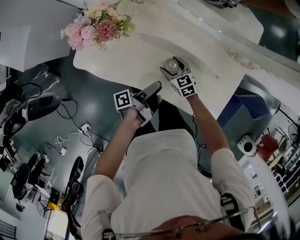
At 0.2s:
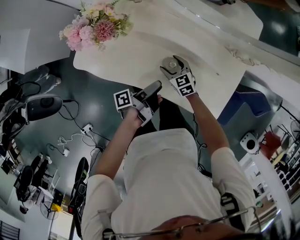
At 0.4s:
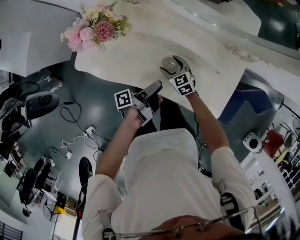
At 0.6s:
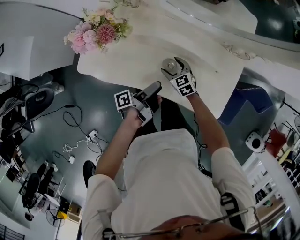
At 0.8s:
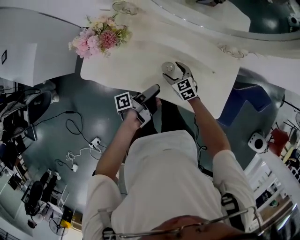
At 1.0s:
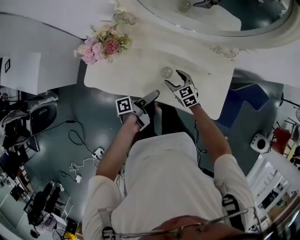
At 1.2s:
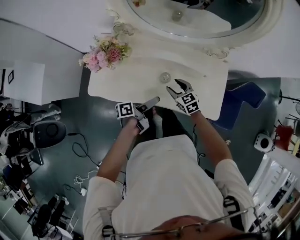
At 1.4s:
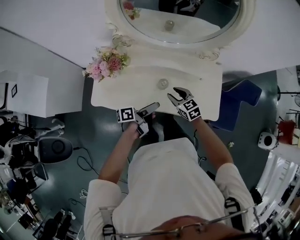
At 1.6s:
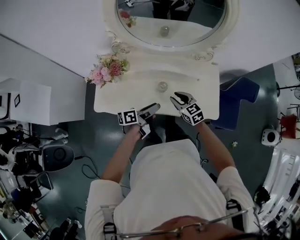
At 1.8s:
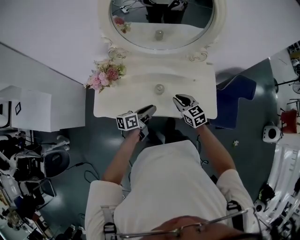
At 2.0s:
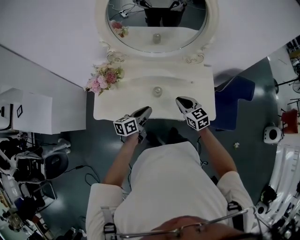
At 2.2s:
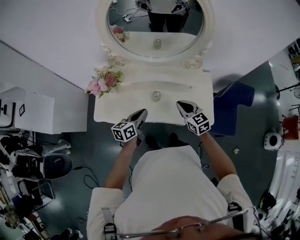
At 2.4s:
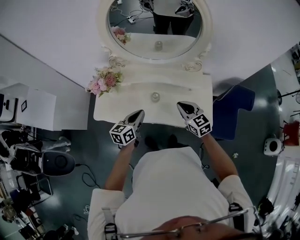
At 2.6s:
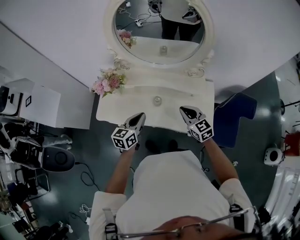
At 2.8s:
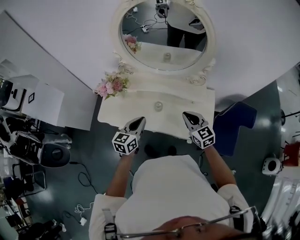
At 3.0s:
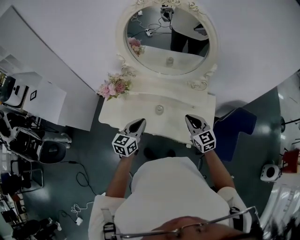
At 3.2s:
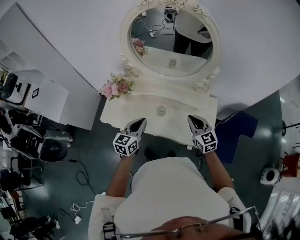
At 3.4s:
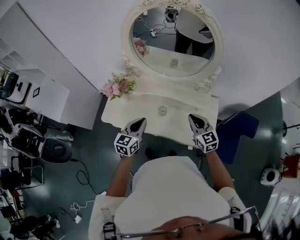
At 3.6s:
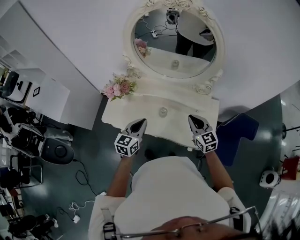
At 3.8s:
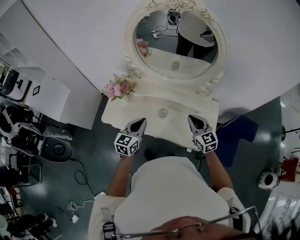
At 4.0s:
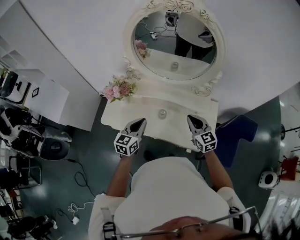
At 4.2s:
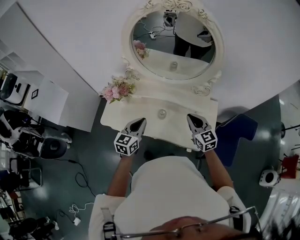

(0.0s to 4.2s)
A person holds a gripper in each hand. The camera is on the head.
0.0s - 1.4s: The right gripper is displaced upward by some 15 cm, and closes up.
1.4s - 2.8s: The right gripper shifts about 15 cm upward, and closes up.

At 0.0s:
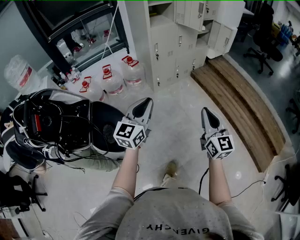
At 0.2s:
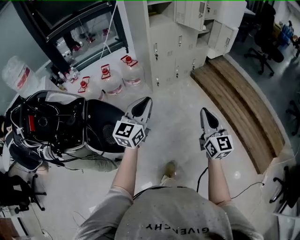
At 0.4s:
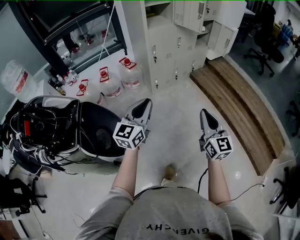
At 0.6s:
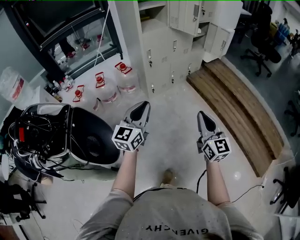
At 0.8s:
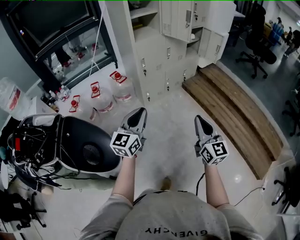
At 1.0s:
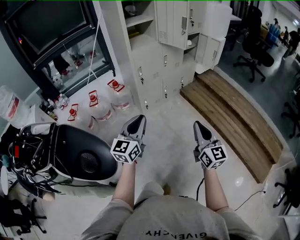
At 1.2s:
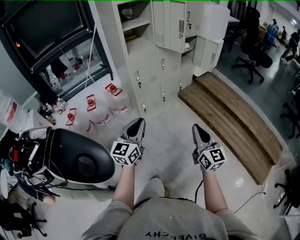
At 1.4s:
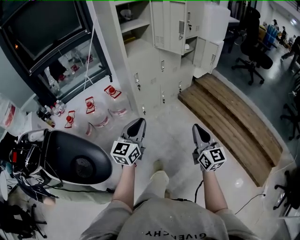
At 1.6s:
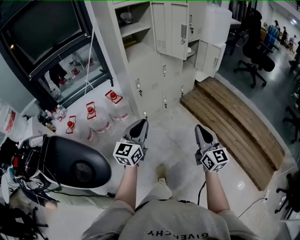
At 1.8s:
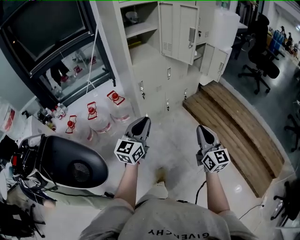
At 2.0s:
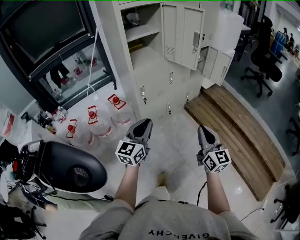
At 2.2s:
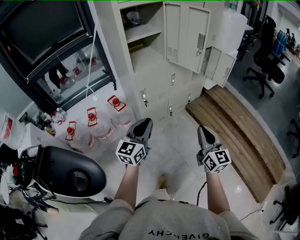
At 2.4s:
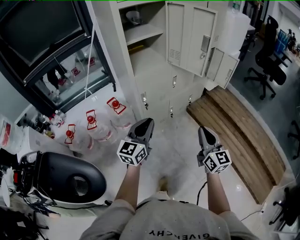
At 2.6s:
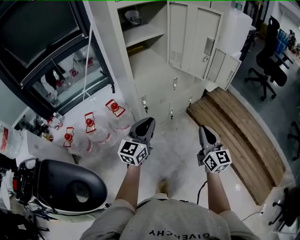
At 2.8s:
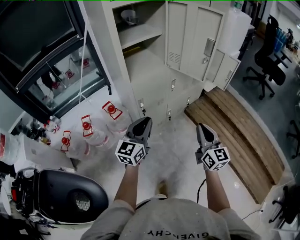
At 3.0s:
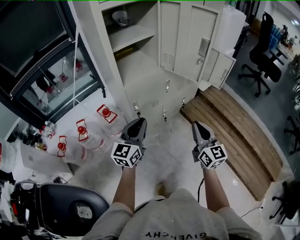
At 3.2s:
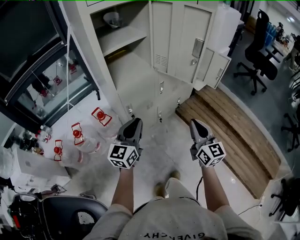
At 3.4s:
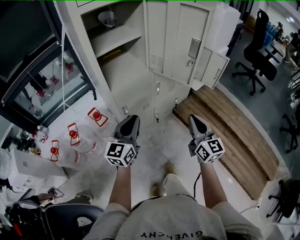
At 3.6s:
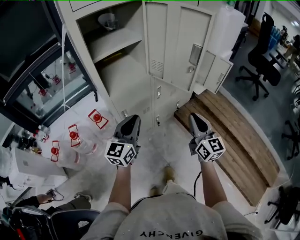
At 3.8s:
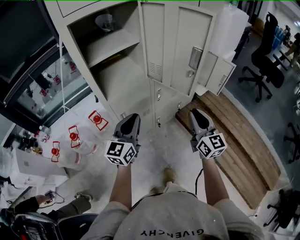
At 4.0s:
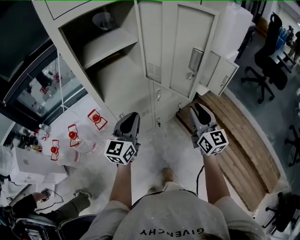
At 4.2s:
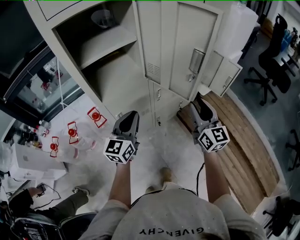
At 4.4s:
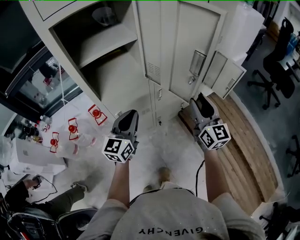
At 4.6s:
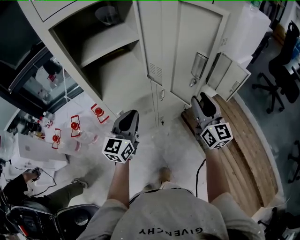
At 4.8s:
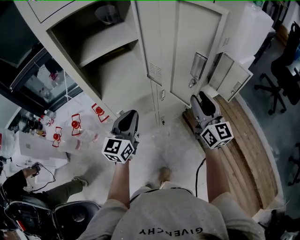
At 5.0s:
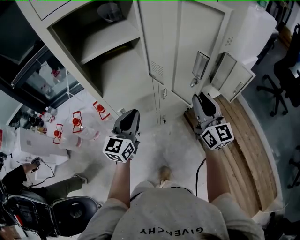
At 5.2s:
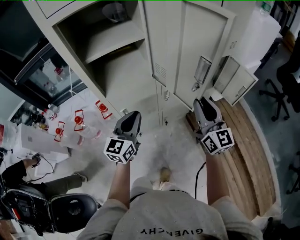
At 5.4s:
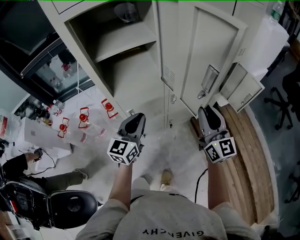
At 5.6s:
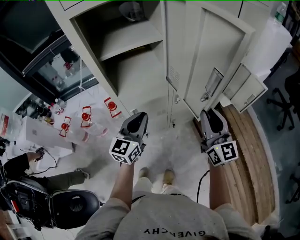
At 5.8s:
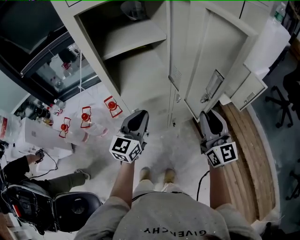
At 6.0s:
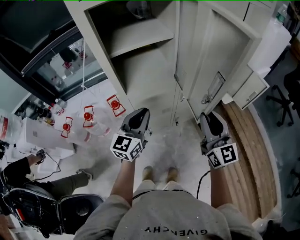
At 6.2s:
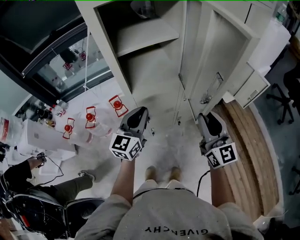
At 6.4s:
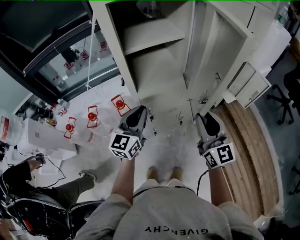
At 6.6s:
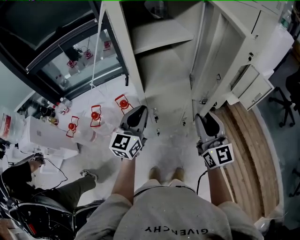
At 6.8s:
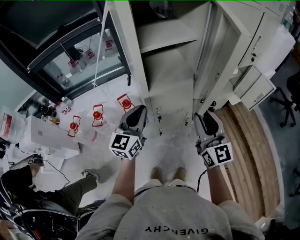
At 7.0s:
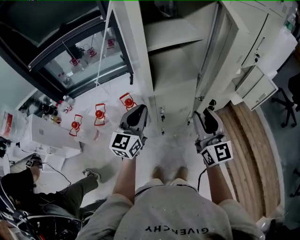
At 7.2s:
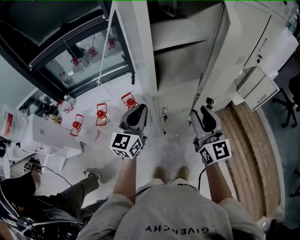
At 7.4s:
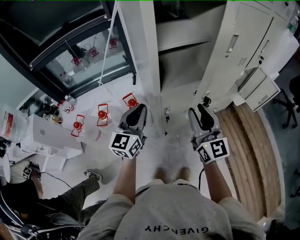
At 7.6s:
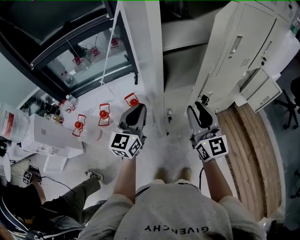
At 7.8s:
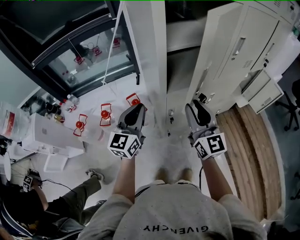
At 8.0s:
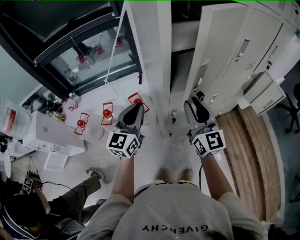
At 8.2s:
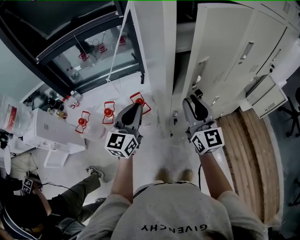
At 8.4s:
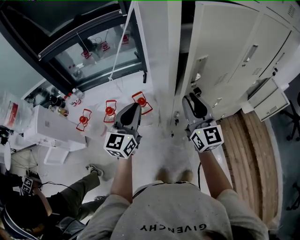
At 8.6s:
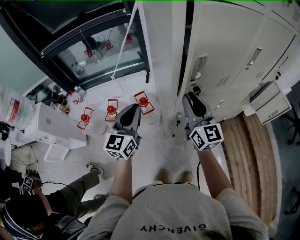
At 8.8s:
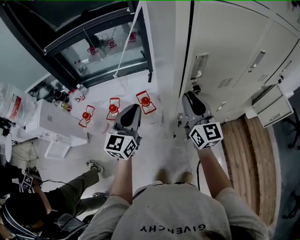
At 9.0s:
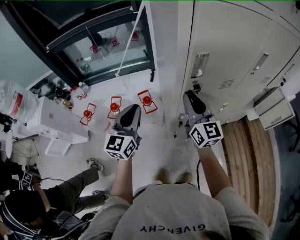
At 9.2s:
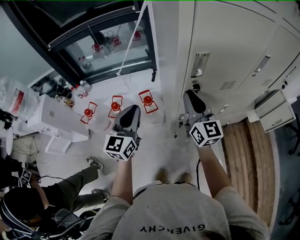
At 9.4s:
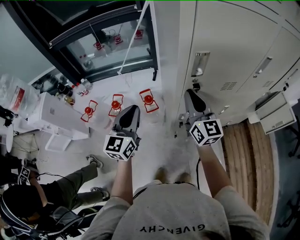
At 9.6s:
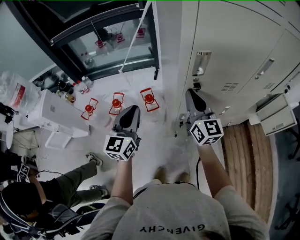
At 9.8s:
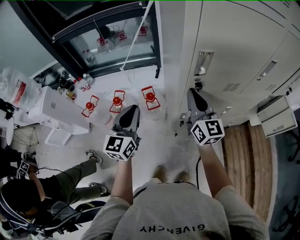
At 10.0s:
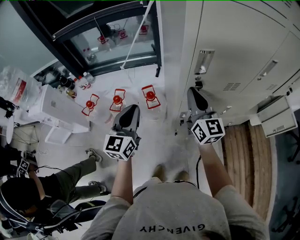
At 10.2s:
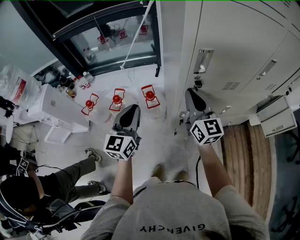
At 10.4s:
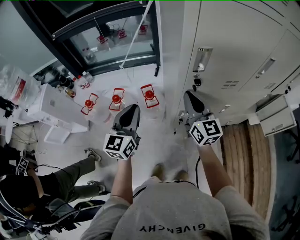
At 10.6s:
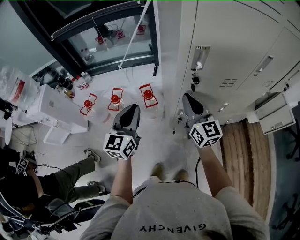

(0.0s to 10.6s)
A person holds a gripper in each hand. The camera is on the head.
0.0s - 1.6s: Both grippers travel together forward, about 25 cm.
1.6s - 3.0s: The two grippers go some 30 cm forward.
3.0s - 4.6s: The left gripper shifts approximately 20 cm forward and to the right; the right gripper is displaced forward by roughly 25 cm, and opens its fingers.
4.6s - 6.0s: The two grippers go roughly 10 cm to the left.
6.0s - 7.6s: Both grippers move to the left, some 20 cm.
7.6s - 9.0s: The right gripper moves forward and to the left, about 10 cm; the left gripper shifts approximately 10 cm to the left.
9.0s - 10.6s: The grippers move only a little.

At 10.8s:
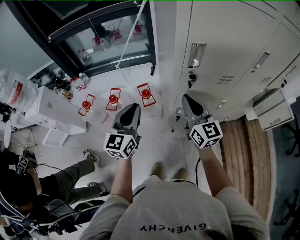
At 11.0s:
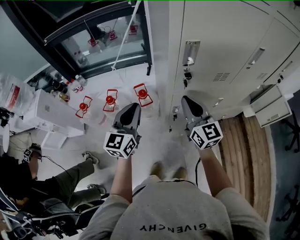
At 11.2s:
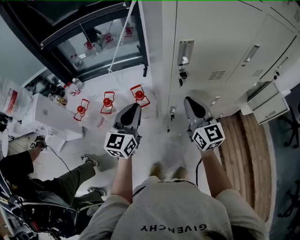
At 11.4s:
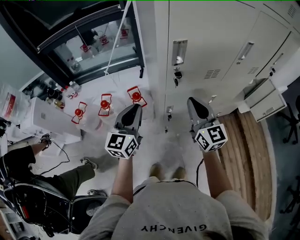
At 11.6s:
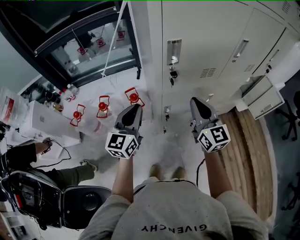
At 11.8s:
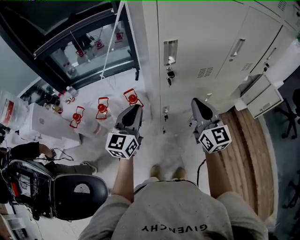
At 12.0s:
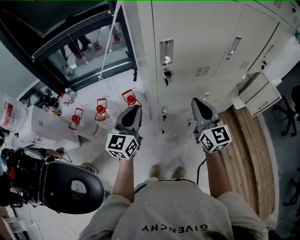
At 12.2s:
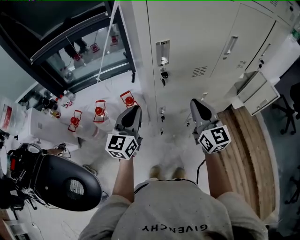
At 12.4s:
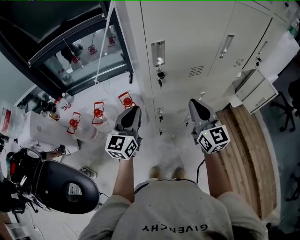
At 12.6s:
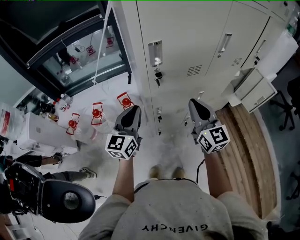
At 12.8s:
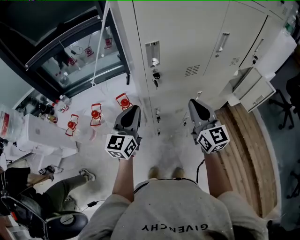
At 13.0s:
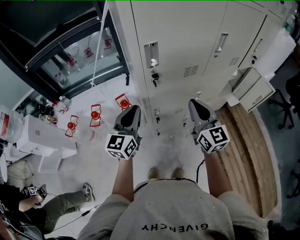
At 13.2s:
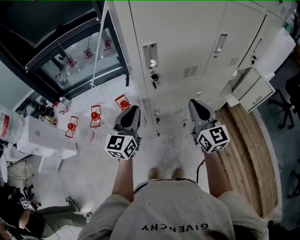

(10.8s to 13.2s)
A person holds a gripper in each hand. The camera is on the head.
10.8s - 12.0s: The right gripper travels to the right and backward by about 10 cm. The left gripper shifts roughly 10 cm to the right.
12.0s - 13.2s: The grippers stay close to where they were, moving slightly.

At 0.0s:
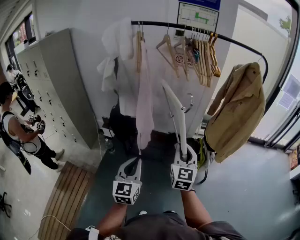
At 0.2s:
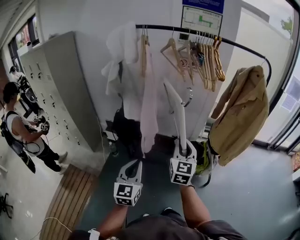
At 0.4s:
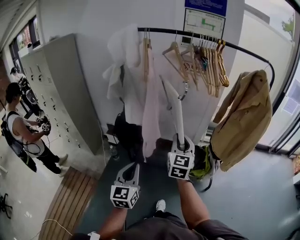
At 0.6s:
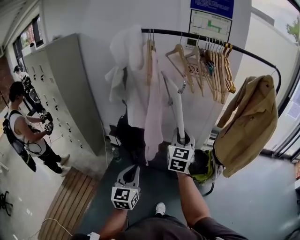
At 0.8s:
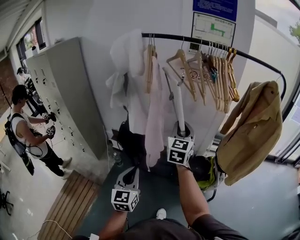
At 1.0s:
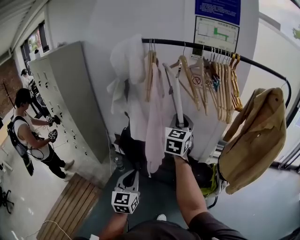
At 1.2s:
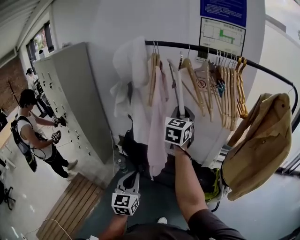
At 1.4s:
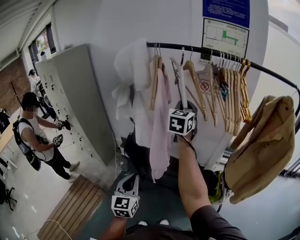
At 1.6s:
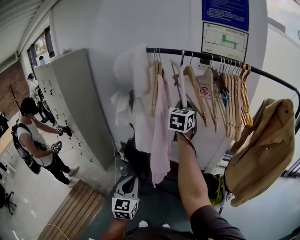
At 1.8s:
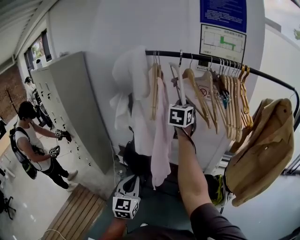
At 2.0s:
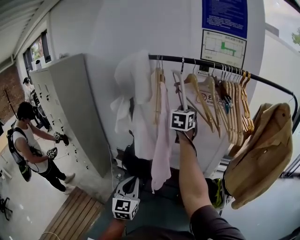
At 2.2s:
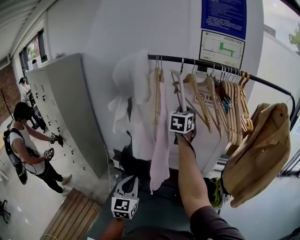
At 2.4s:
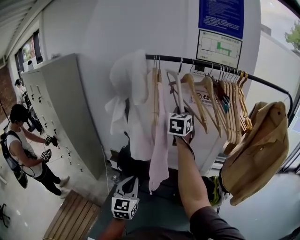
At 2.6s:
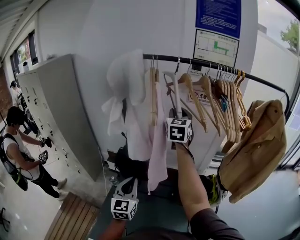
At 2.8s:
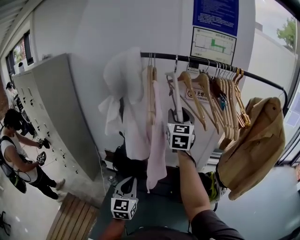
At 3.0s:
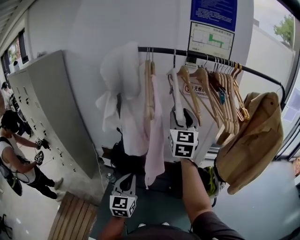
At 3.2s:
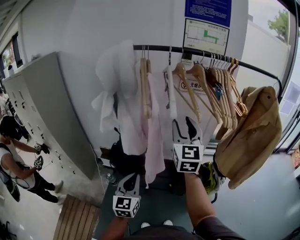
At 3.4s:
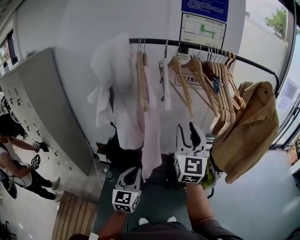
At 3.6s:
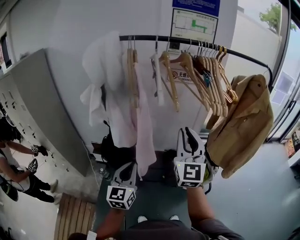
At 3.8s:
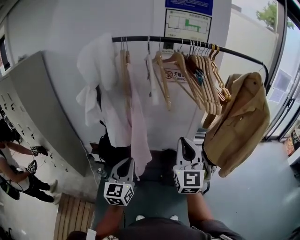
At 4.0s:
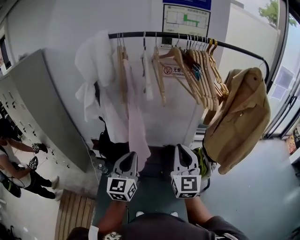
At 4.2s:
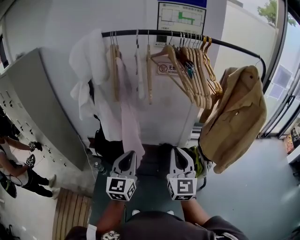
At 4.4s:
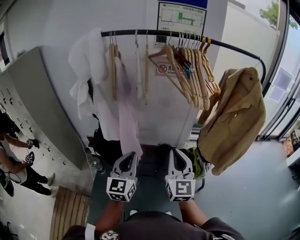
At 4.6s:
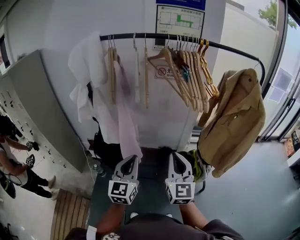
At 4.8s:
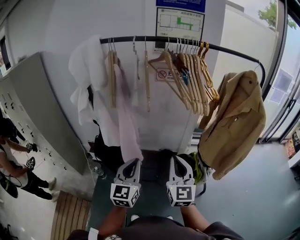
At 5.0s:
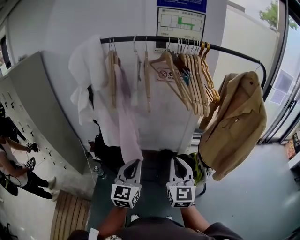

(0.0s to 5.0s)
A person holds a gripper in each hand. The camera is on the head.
0.0s - 1.6s: The right gripper shifts approximately 40 cm forward and upward, while the left gripper heads forward and to the left, covering approximately 15 cm.
1.6s - 3.4s: The left gripper swivels roughly 20 degrees. The right gripper heads backward, covering some 20 cm, swivels roughly 20 degrees, and opens.
3.4s - 5.0s: The right gripper shifts some 20 cm downward, to the right and backward, and closes up. Meanwhile the left gripper goes some 10 cm to the right.

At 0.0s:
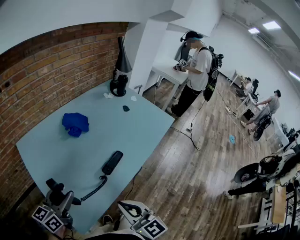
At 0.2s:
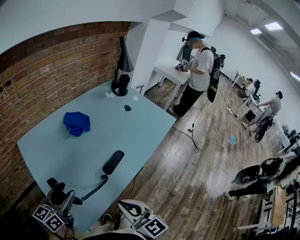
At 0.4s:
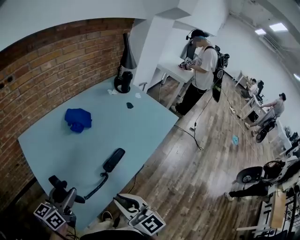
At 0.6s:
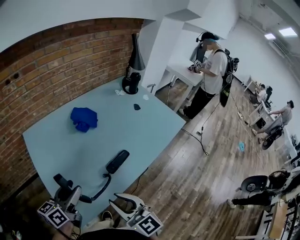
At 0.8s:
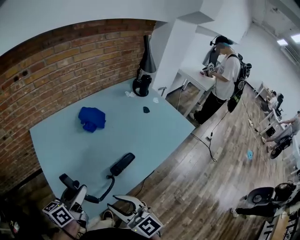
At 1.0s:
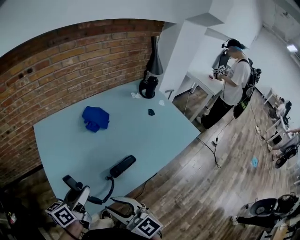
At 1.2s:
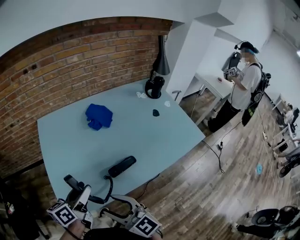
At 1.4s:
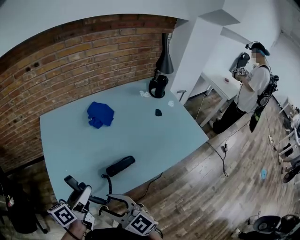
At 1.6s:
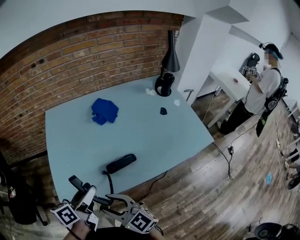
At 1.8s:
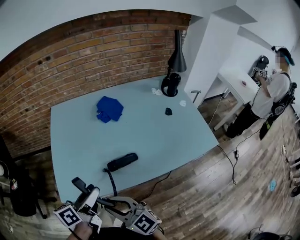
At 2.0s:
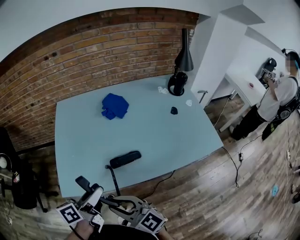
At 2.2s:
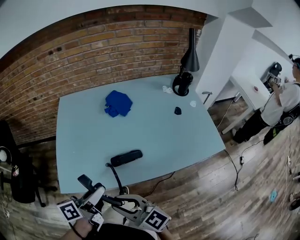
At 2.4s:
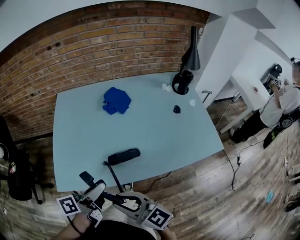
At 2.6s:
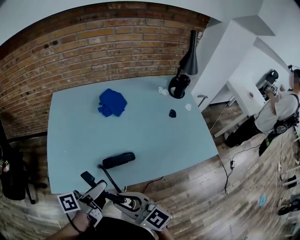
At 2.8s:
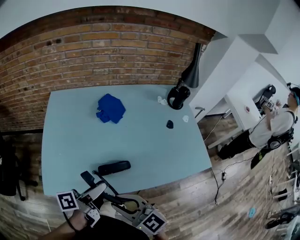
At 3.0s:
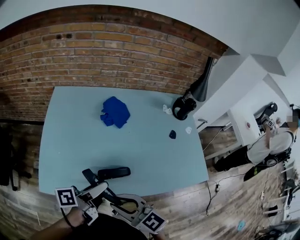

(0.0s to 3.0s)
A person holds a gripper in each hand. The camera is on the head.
0.0s - 1.6s: The right gripper shifts by approximately 5 cm, swivels about 50 degrees, and opens up.
1.6s - 3.0s: The right gripper moves about 10 cm, and closes its fingers.
